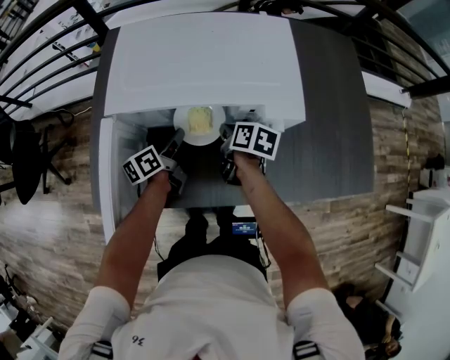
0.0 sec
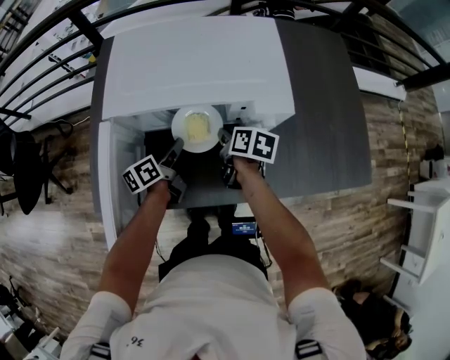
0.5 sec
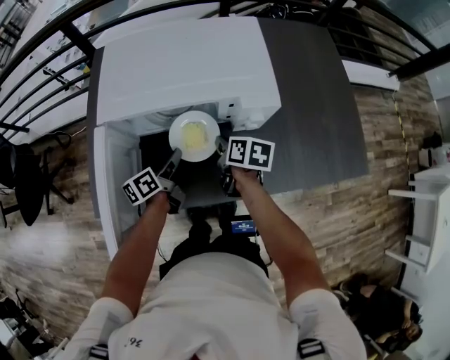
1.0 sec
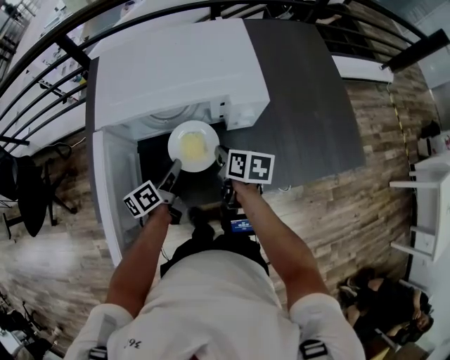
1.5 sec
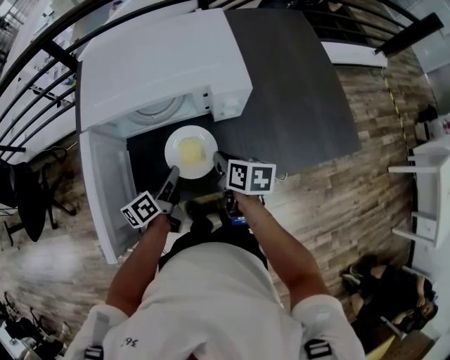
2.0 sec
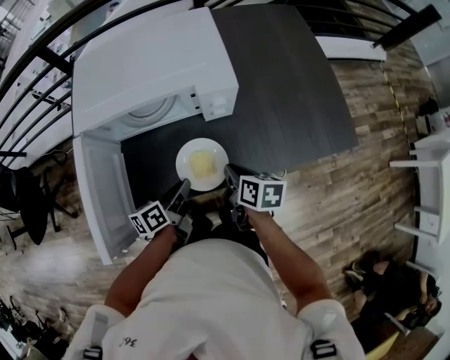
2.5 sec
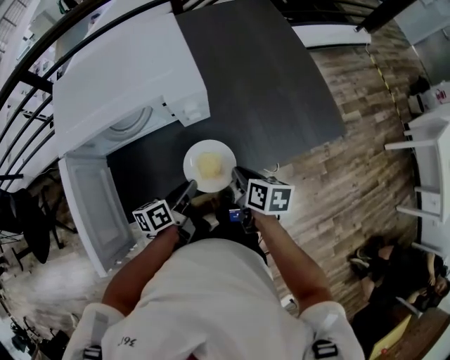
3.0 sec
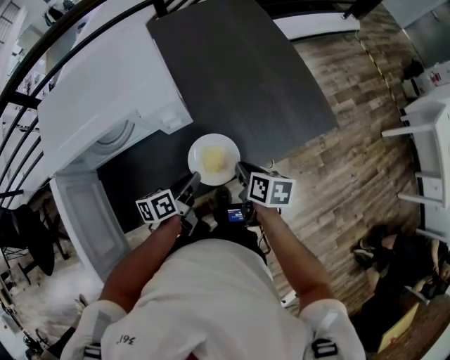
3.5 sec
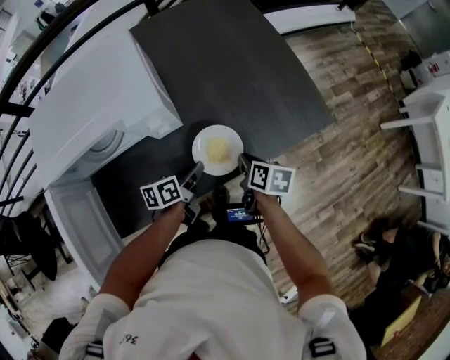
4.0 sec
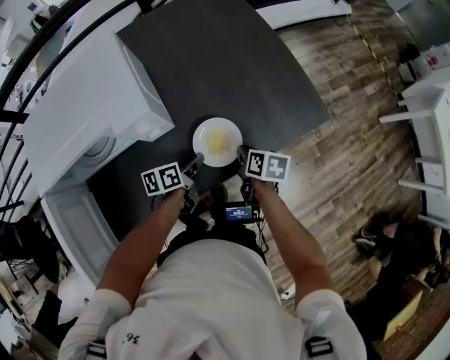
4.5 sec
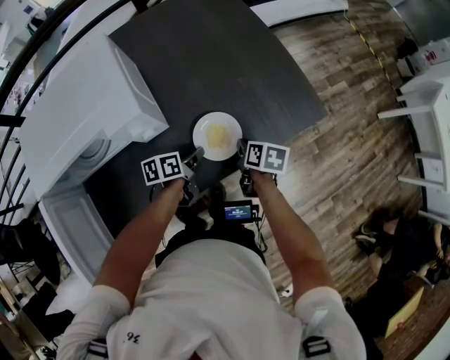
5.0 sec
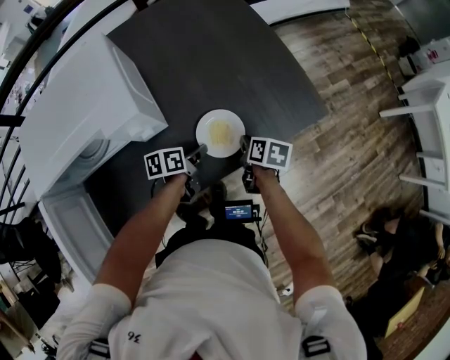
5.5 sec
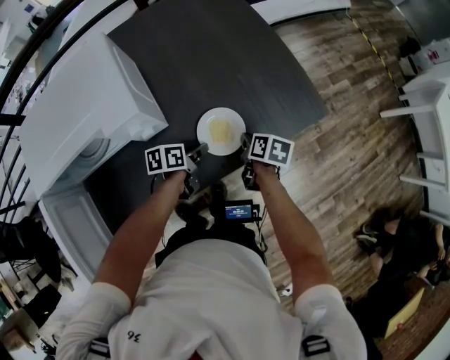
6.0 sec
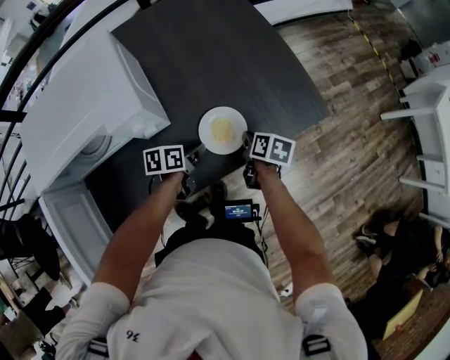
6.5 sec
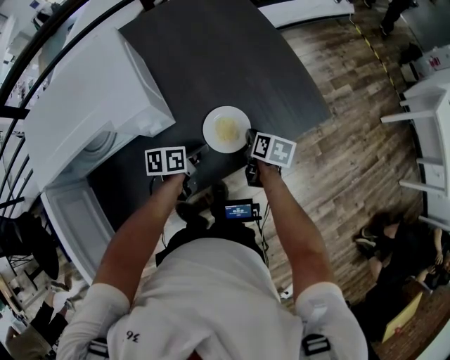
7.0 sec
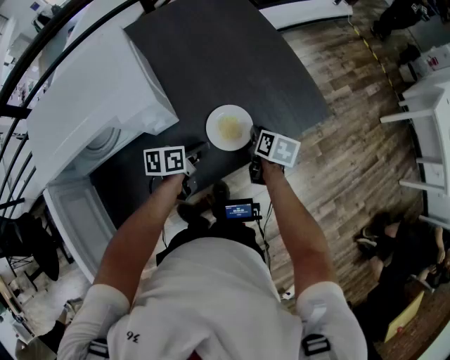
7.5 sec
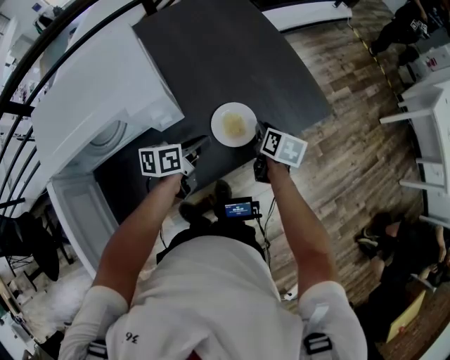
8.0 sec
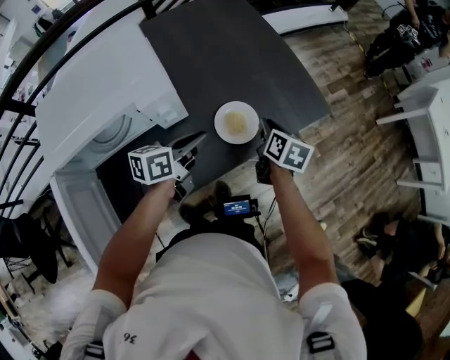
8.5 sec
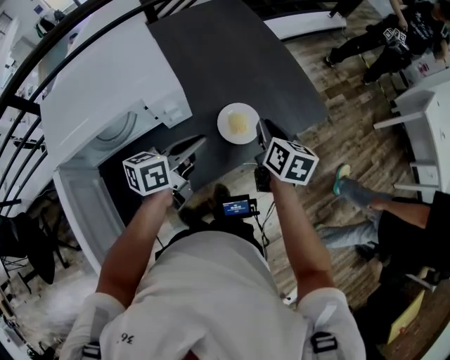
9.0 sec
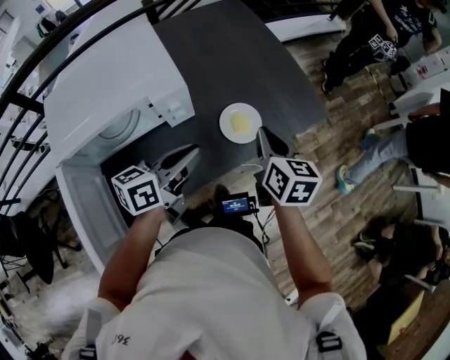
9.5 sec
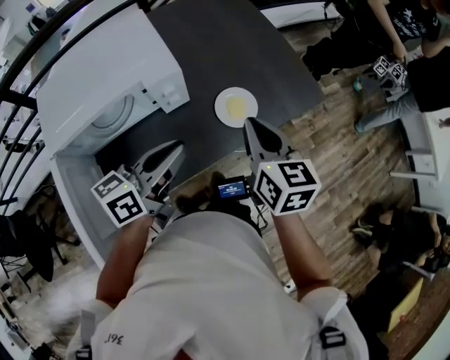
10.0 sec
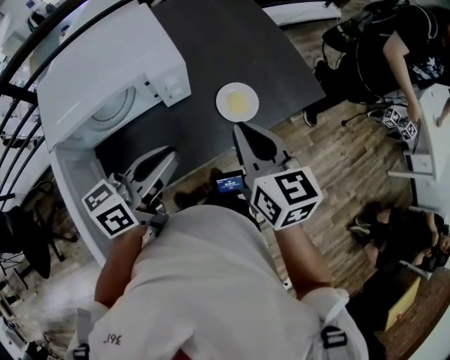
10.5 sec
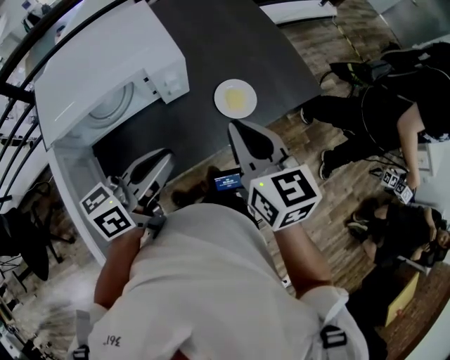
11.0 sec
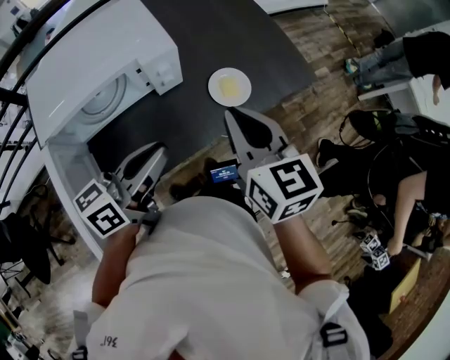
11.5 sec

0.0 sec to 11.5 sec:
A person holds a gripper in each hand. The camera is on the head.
0.0 sec to 2.0 sec: Both grippers move backward and to the right, some 15 cm.
2.0 sec to 4.0 sec: Both grippers move to the right, some 25 cm. The left gripper turns by about 30 degrees, while the right gripper changes its angle by approximately 20 degrees.
4.0 sec to 6.0 sec: The two grippers go about 5 cm forward.
6.0 sec to 7.5 sec: The grippers stay close to where they were, moving slightly.
7.5 sec to 9.5 sec: Both grippers travel together upward and backward, roughly 25 cm. The left gripper turns by roughly 30 degrees. The right gripper rotates roughly 30 degrees.
9.5 sec to 11.5 sec: The left gripper heads backward and upward, covering roughly 10 cm; the right gripper heads backward, upward and to the left, covering some 15 cm, and swivels about 20 degrees.

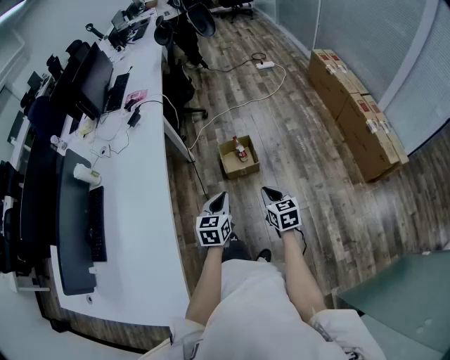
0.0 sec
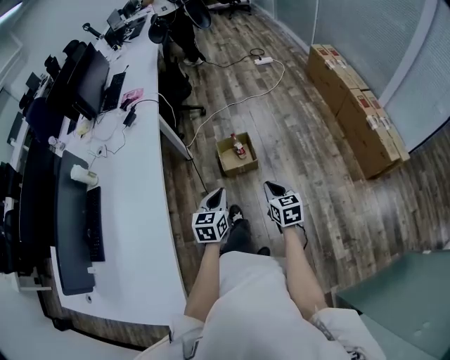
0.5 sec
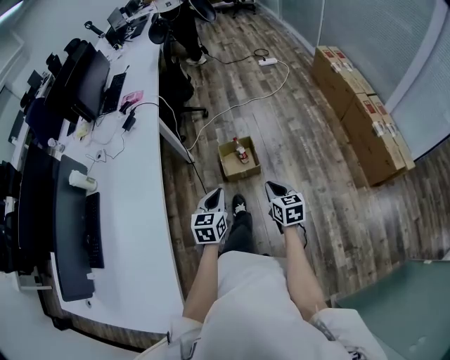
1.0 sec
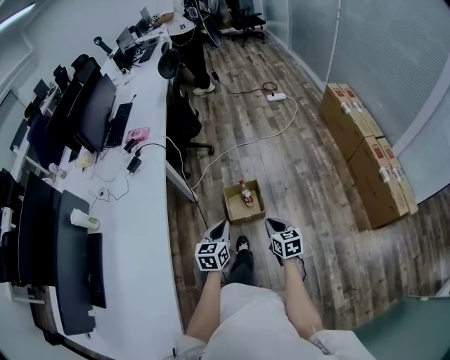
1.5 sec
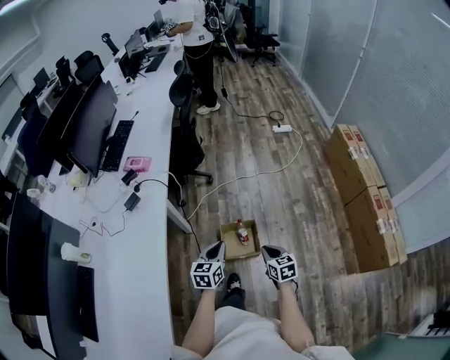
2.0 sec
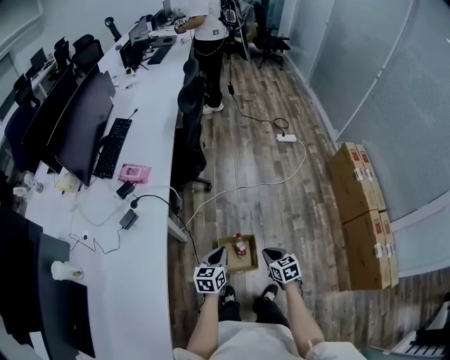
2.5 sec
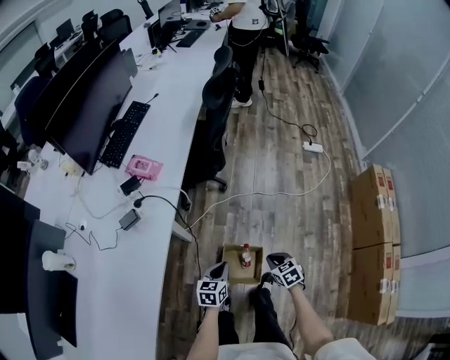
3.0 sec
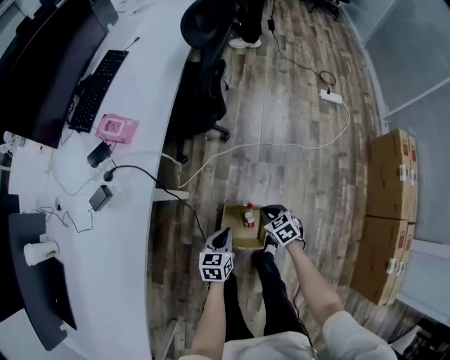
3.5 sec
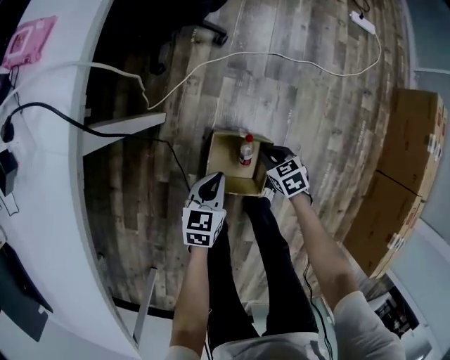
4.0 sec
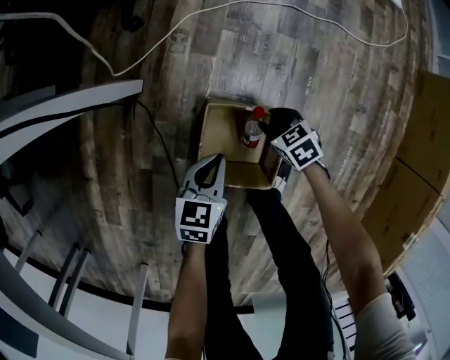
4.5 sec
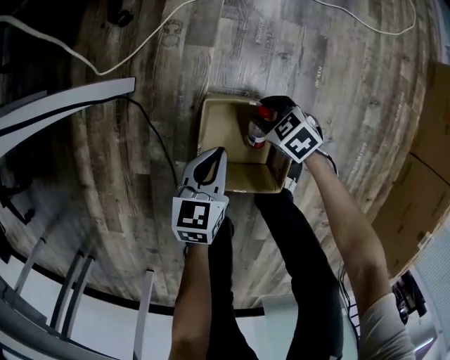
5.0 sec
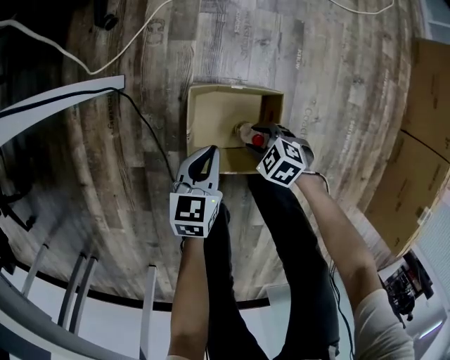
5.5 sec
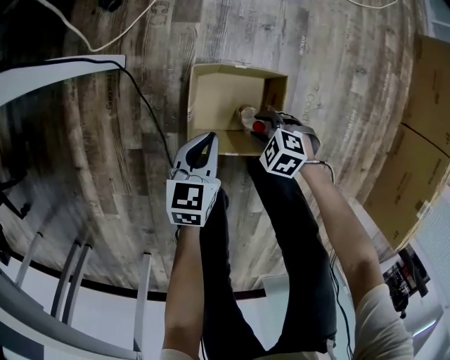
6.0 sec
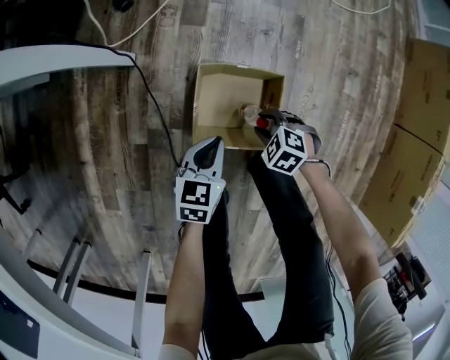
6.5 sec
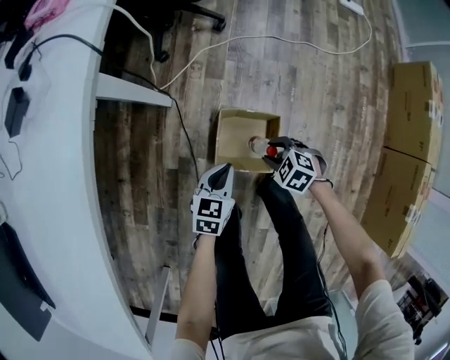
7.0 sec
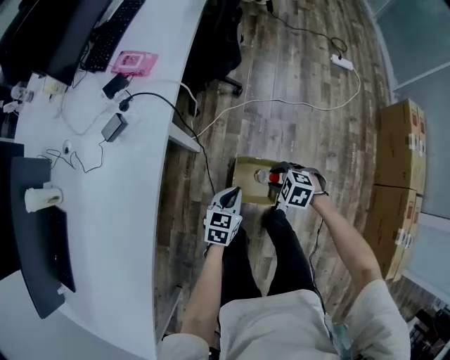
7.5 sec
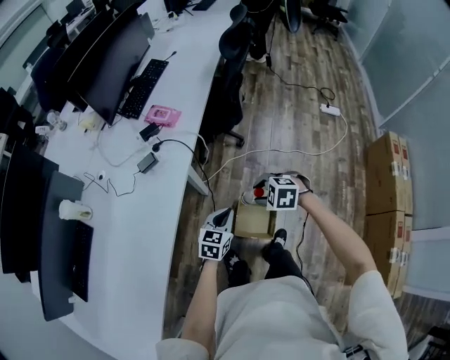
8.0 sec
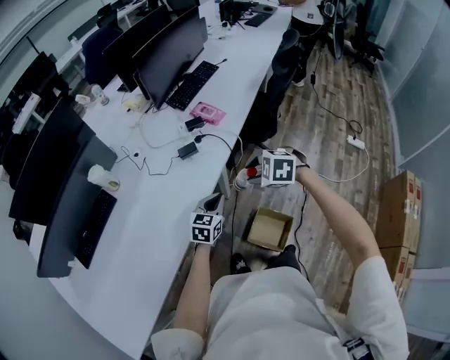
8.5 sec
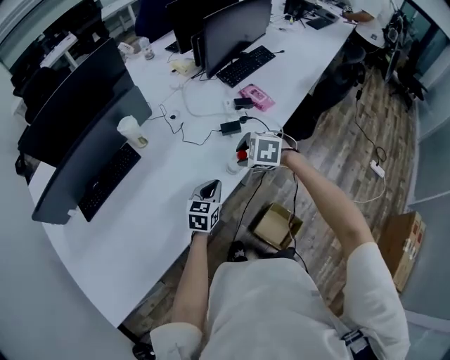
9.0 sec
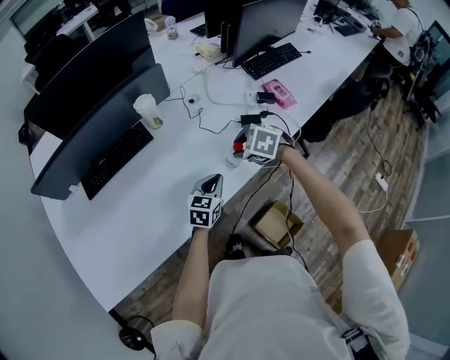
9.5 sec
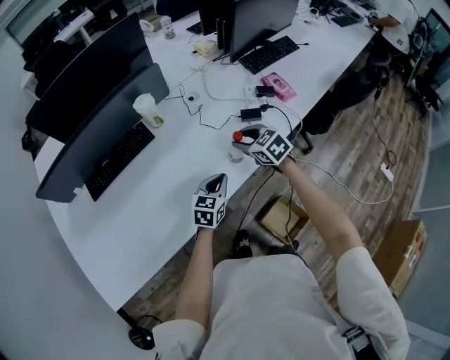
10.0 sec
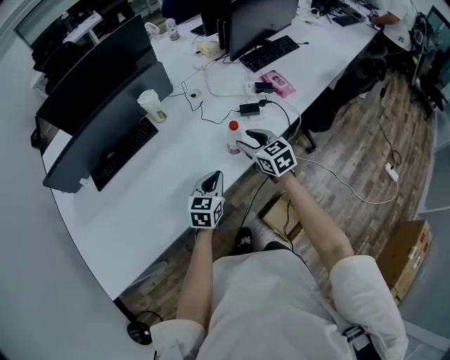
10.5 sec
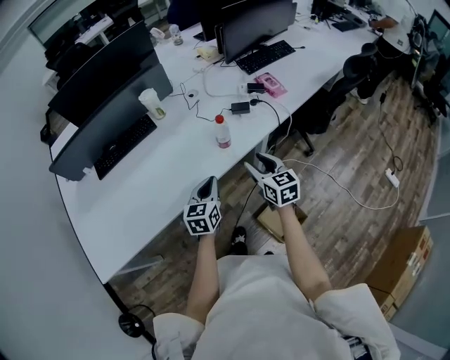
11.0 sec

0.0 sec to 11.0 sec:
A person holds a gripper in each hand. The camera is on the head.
0.0 sec to 2.0 sec: Both grippers travel together forward, roughly 40 cm.
2.0 sec to 3.5 sec: The two grippers go roughly 40 cm forward and downward. The right gripper swivels roughly 40 degrees.
3.5 sec to 5.5 sec: Both grippers move downward, about 40 cm. The right gripper turns by some 30 degrees, and opens its fingers.
5.5 sec to 7.5 sec: Both grippers move upward, about 50 cm.
7.5 sec to 9.0 sec: The right gripper shifts by about 50 cm, and changes its angle by about 40 degrees, while the left gripper changes place by about 40 cm, and changes its angle by about 40 degrees.
9.0 sec to 11.0 sec: The two grippers go roughly 15 cm backward. The left gripper swivels roughly 20 degrees; the right gripper points its fingers some 40 degrees further upward.

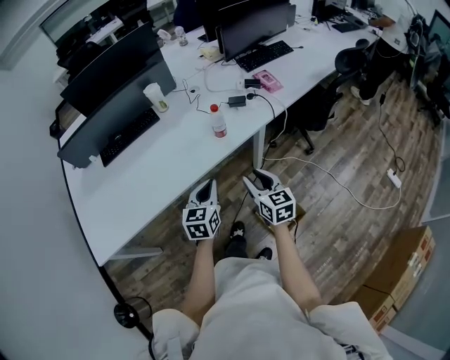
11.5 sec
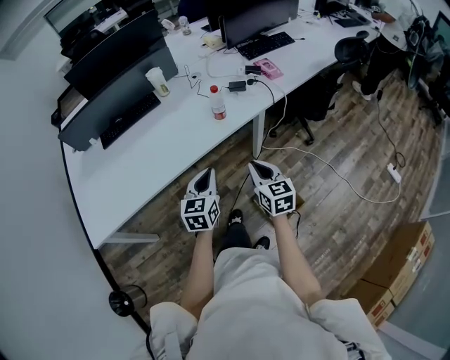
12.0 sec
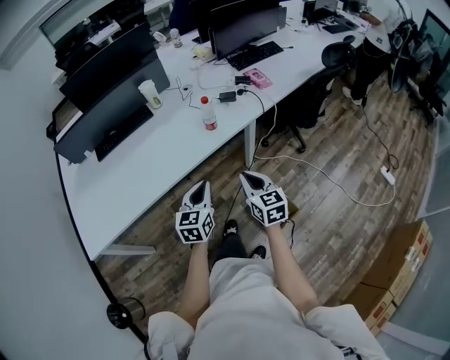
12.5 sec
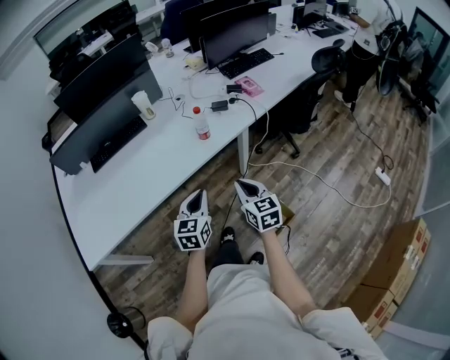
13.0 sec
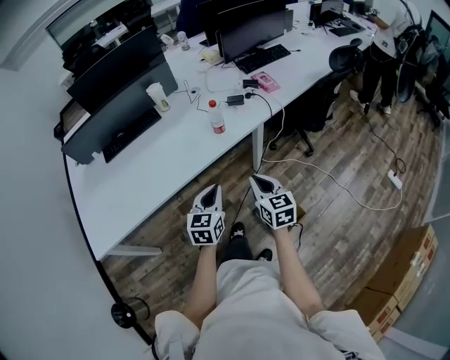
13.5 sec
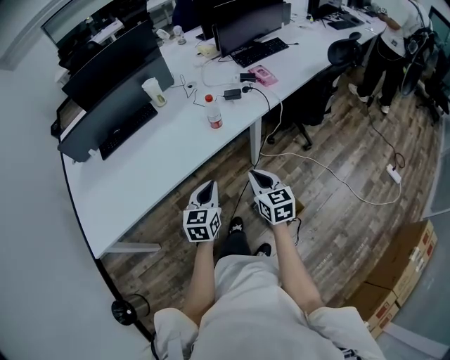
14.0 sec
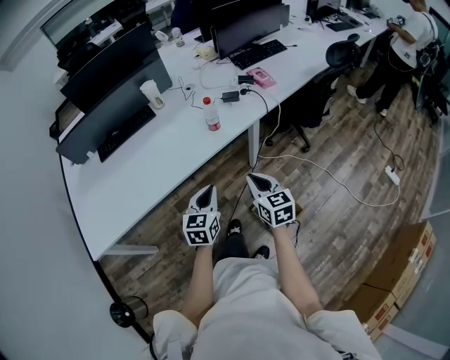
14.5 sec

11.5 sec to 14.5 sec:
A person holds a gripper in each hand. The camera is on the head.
11.5 sec to 13.0 sec: Both grippers travel together backward, some 5 cm. The right gripper closes up.
13.0 sec to 14.5 sec: There are only small adjustments of the grippers.

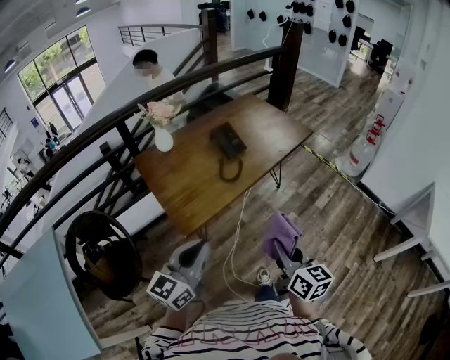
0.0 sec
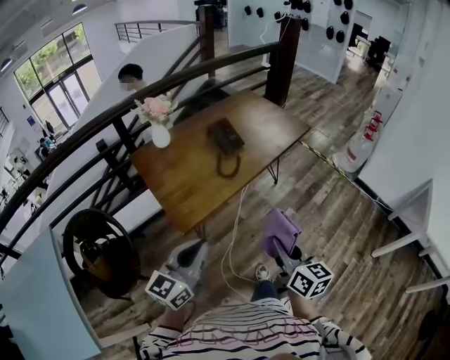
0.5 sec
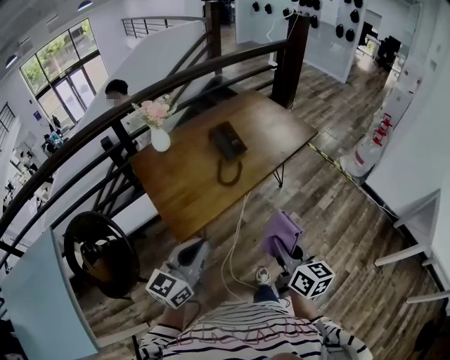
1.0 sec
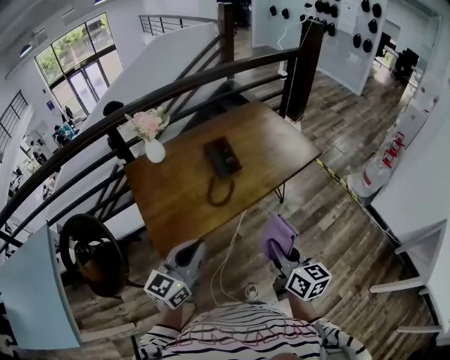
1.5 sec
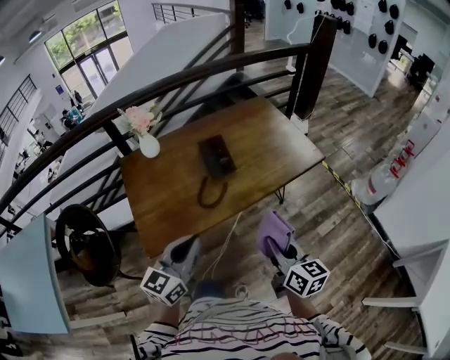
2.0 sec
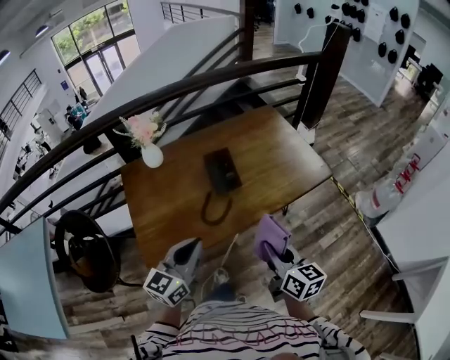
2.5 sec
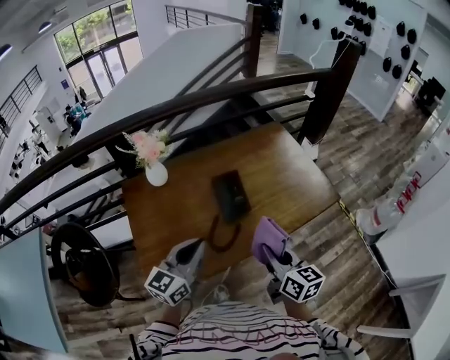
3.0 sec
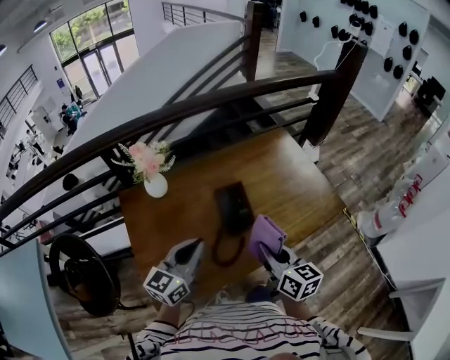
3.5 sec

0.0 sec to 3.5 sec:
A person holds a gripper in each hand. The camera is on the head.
0.0 sec to 2.0 sec: The two grippers go some 35 cm forward and to the right.
2.0 sec to 3.5 sec: The left gripper travels forward by roughly 30 cm. The right gripper shifts approximately 35 cm forward and to the left.
